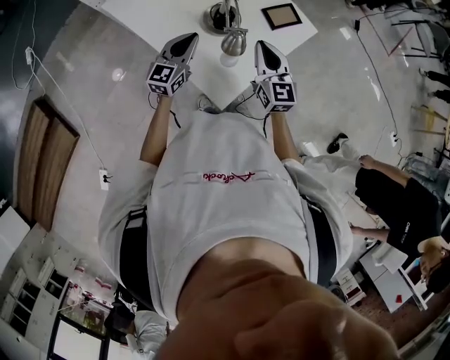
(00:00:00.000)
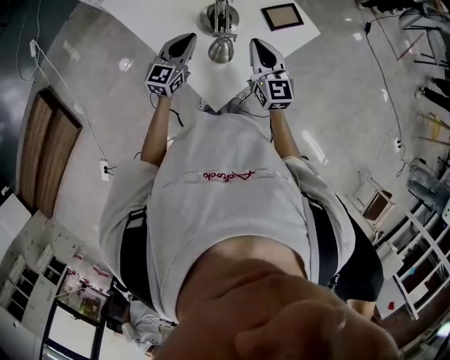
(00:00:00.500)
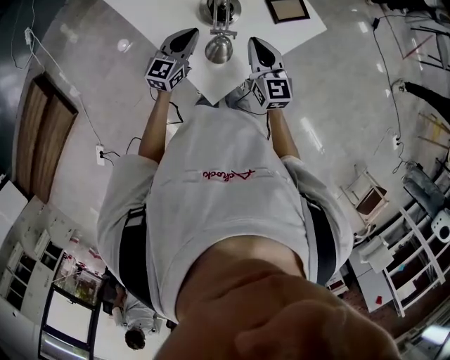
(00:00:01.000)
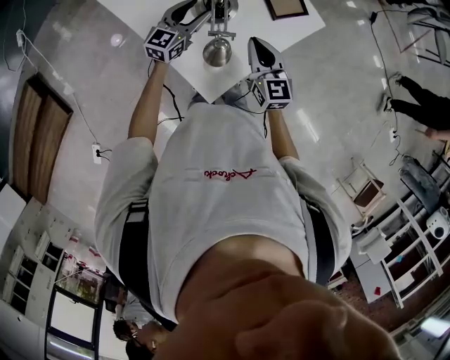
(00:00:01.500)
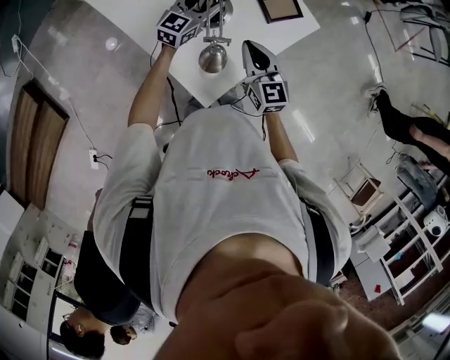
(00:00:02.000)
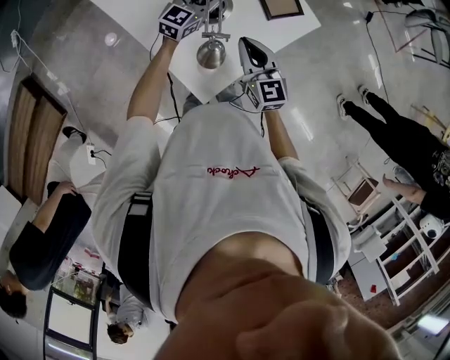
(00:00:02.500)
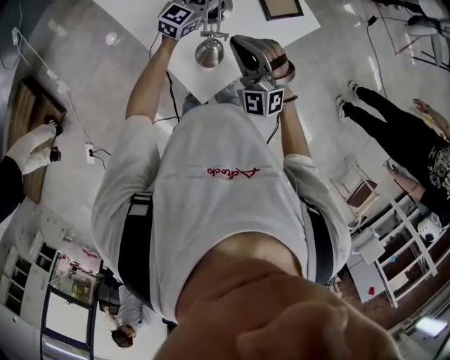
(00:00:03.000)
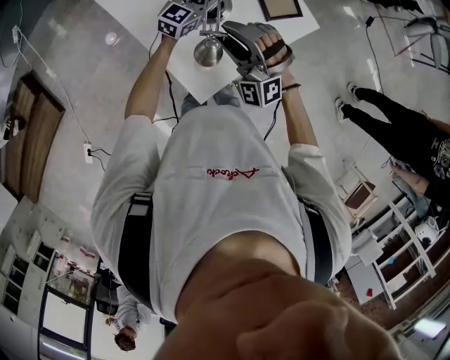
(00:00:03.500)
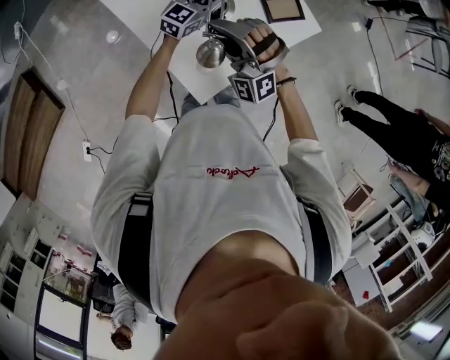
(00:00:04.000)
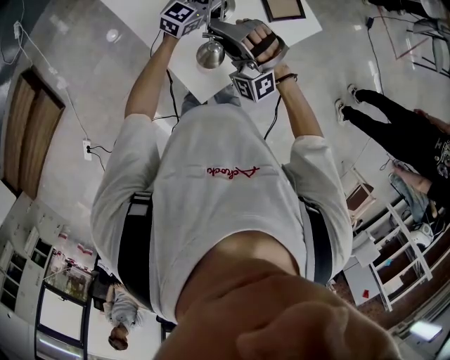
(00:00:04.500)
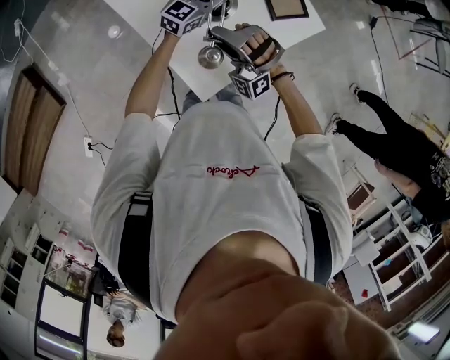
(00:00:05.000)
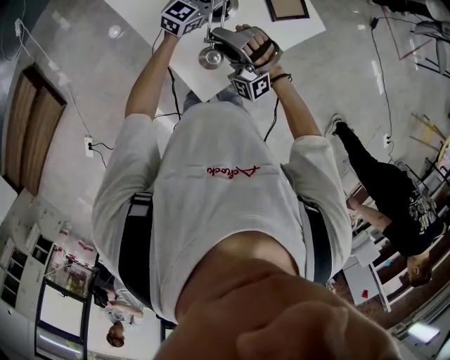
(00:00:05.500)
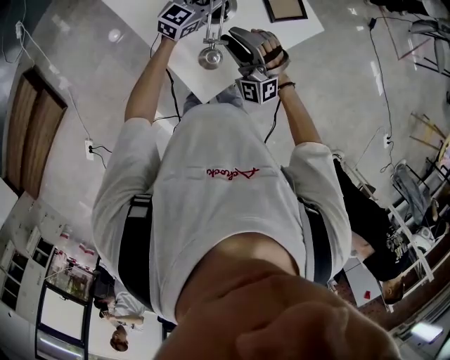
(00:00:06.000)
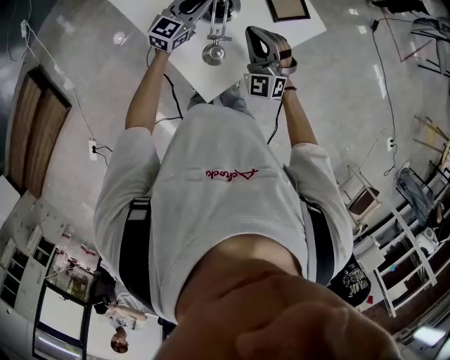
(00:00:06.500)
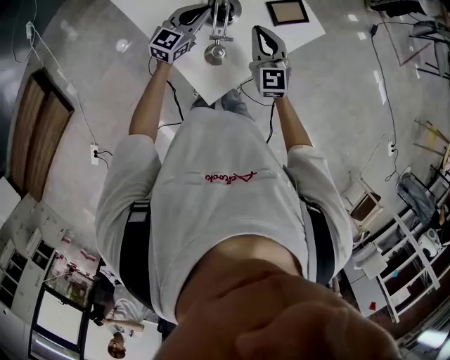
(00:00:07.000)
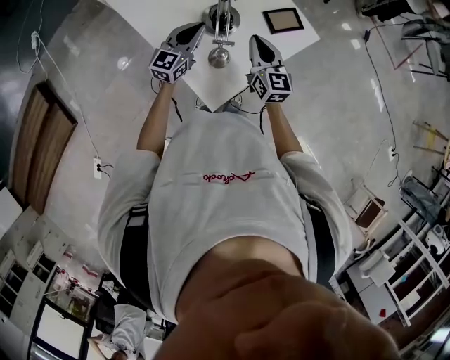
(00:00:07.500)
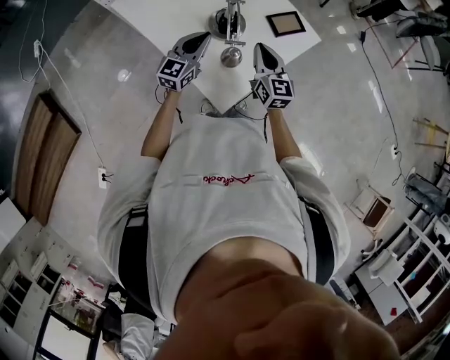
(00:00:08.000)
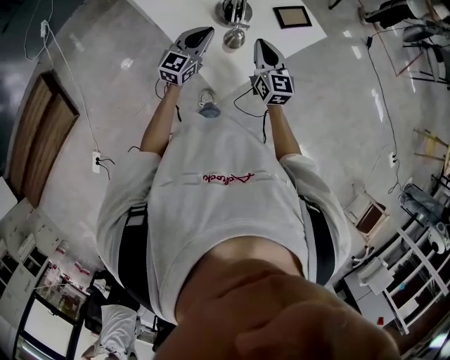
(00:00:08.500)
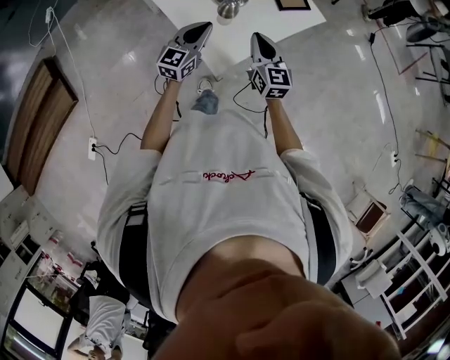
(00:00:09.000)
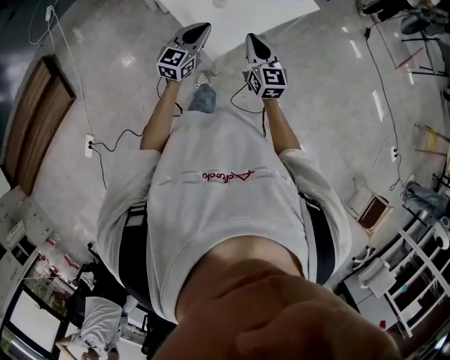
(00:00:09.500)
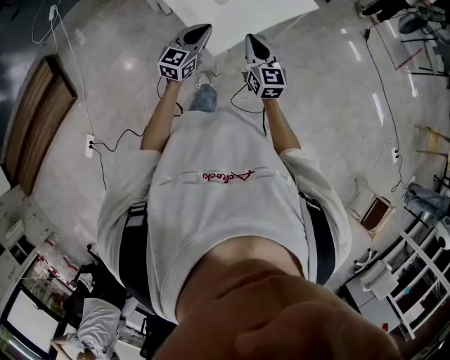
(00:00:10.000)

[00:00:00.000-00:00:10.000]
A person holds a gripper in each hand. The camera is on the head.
00:00:00.000 to 00:00:02.000: The left gripper travels forward and to the right by roughly 15 cm, and opens up. Meanwhile the right gripper is displaced downward by some 5 cm.
00:00:02.000 to 00:00:04.000: The right gripper shifts about 15 cm to the left and upward, twists some 80 degrees counterclockwise, seen from behind, and opens its fingers.
00:00:04.000 to 00:00:06.000: The right gripper travels downward by roughly 5 cm.
00:00:06.000 to 00:00:08.000: The right gripper heads to the right, covering roughly 5 cm, rotates around the line of its fingers by some 70 degrees, clockwise from behind, and closes. Meanwhile the left gripper goes approximately 15 cm backward and to the left, and closes its fingers.
00:00:08.000 to 00:00:10.000: The two grippers go roughly 20 cm backward.

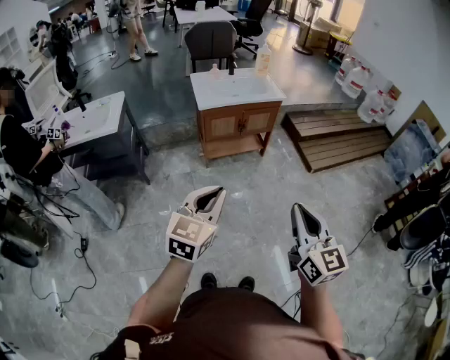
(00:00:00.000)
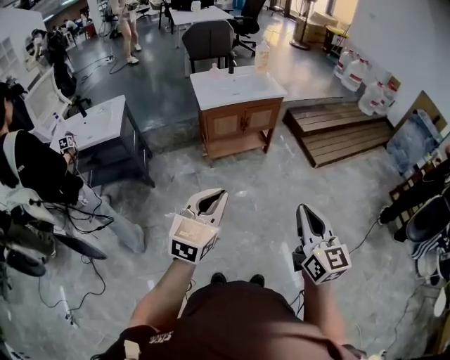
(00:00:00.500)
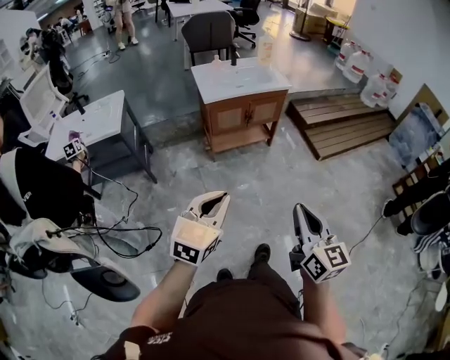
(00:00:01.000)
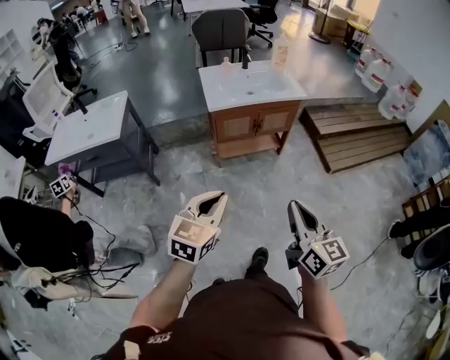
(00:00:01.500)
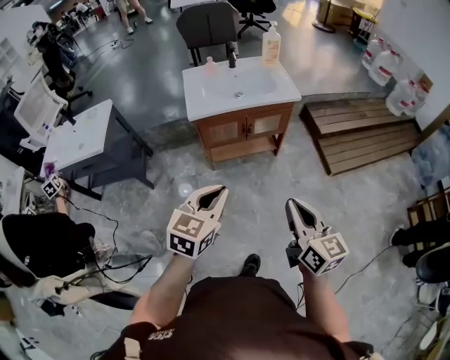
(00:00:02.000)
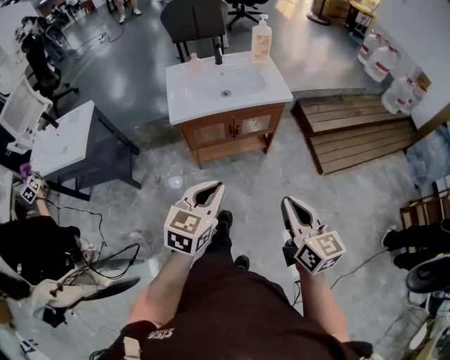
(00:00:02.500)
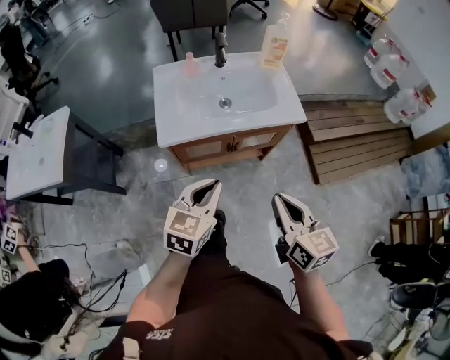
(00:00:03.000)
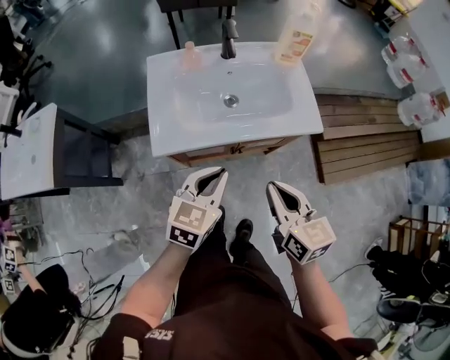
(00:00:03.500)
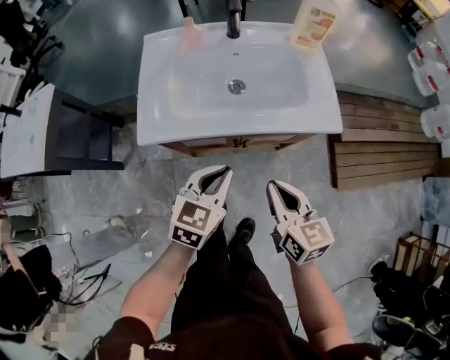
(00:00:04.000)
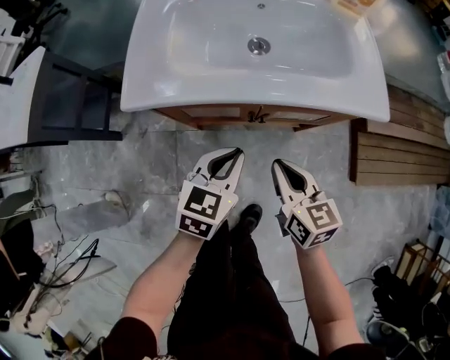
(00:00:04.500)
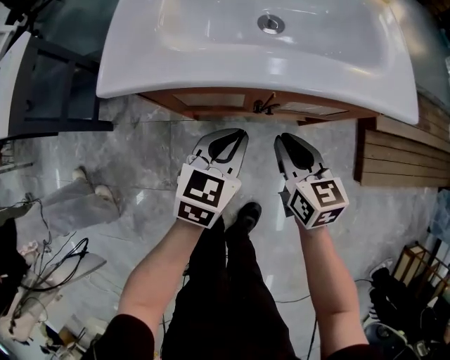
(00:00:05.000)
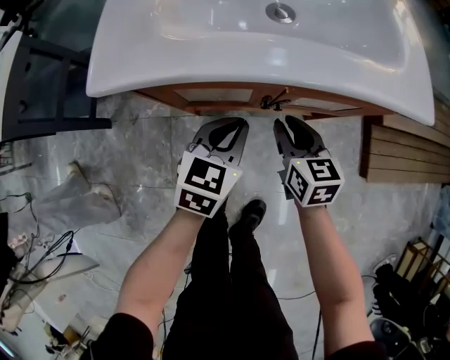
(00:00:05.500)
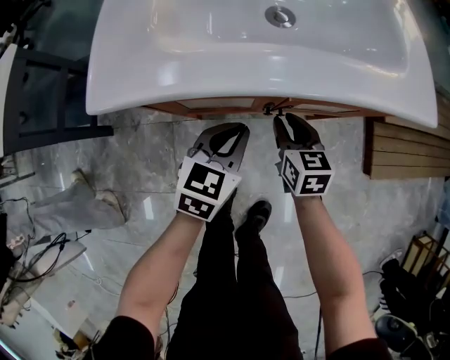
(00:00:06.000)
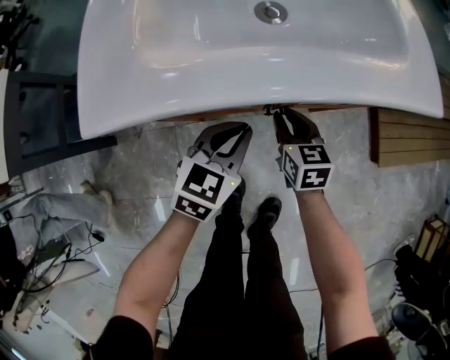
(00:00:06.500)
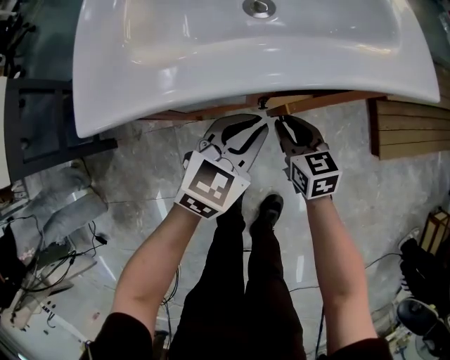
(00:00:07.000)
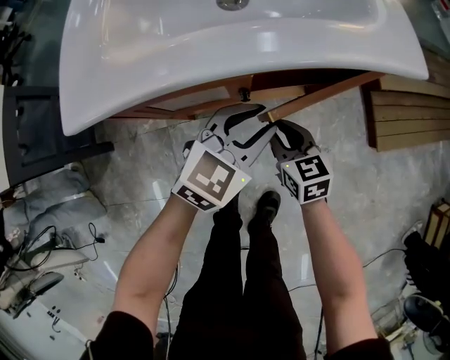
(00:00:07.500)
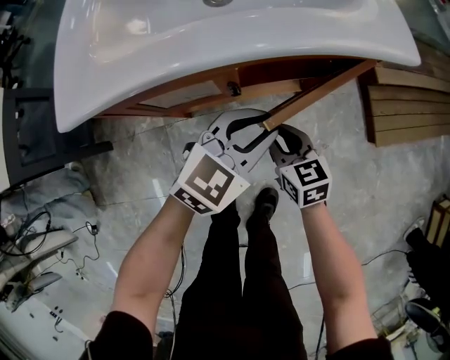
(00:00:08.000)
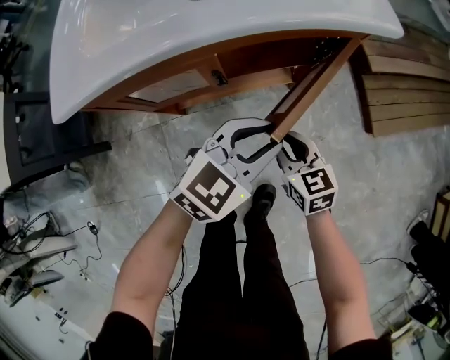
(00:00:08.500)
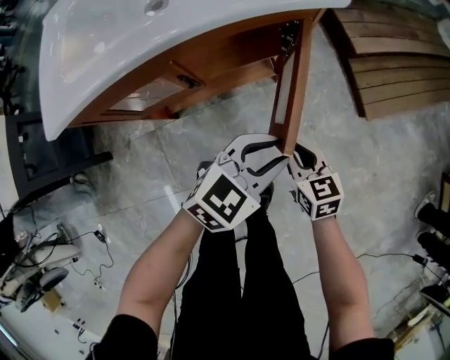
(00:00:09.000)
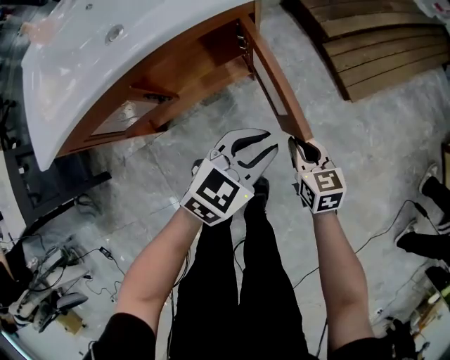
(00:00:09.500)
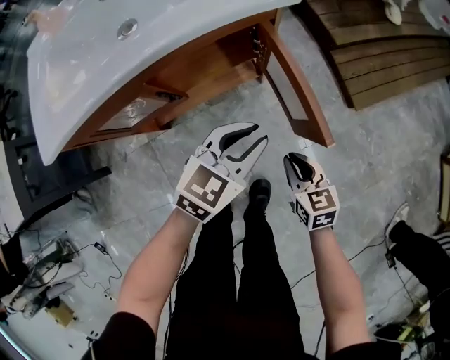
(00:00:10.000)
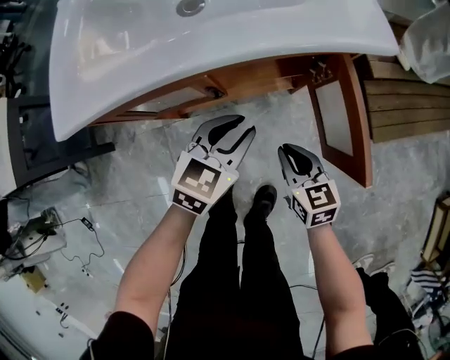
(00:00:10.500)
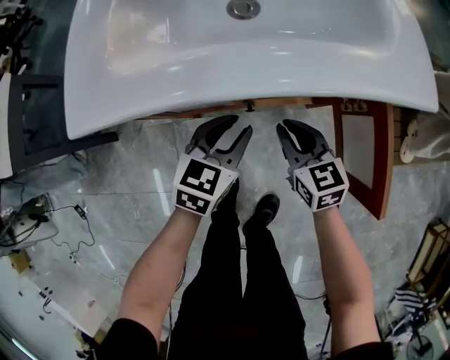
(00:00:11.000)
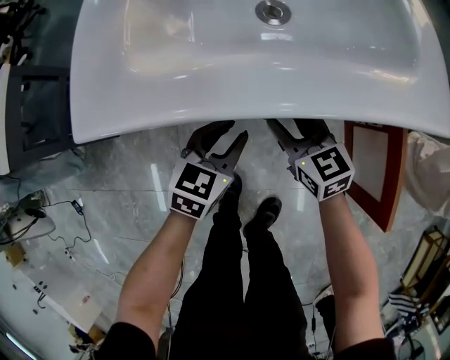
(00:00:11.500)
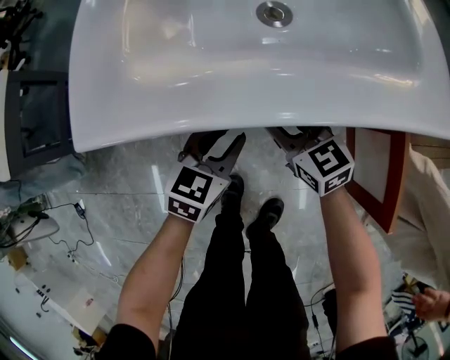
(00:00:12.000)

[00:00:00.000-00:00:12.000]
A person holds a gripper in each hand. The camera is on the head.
00:00:00.000 to 00:00:02.000: The two grippers go some 25 cm forward.
00:00:02.000 to 00:00:04.000: The grippers both shift forward and downward by some 50 cm.
00:00:04.000 to 00:00:06.000: The grippers both shift downward by some 25 cm. The right gripper opens its fingers.
00:00:06.000 to 00:00:08.000: The right gripper shifts roughly 10 cm backward and to the right. The left gripper shifts roughly 15 cm to the right, and changes its angle by some 30 degrees.
00:00:08.000 to 00:00:10.000: The right gripper is displaced to the right by about 20 cm, while the left gripper shifts approximately 15 cm to the right.
00:00:10.000 to 00:00:12.000: The left gripper changes place by about 30 cm, and swivels some 30 degrees. Meanwhile the right gripper shifts by some 40 cm, turns by some 40 degrees, and opens up.

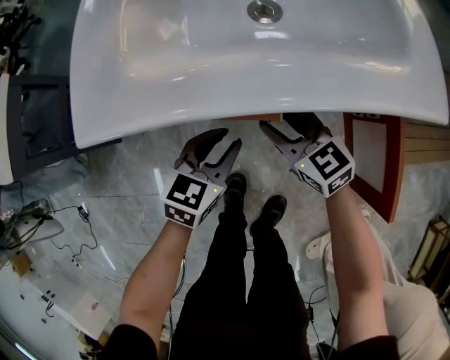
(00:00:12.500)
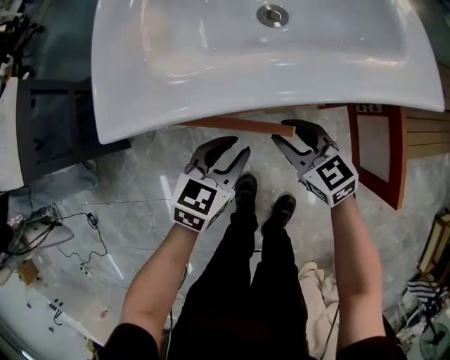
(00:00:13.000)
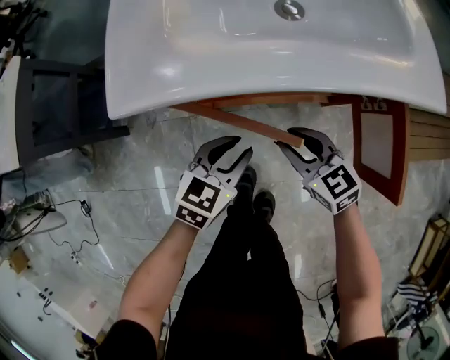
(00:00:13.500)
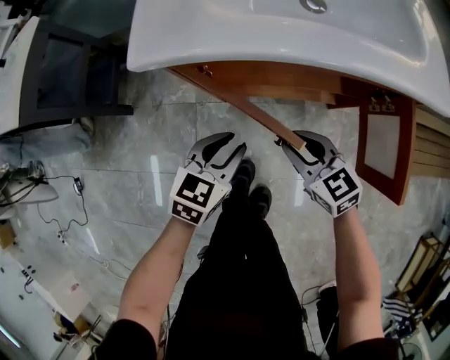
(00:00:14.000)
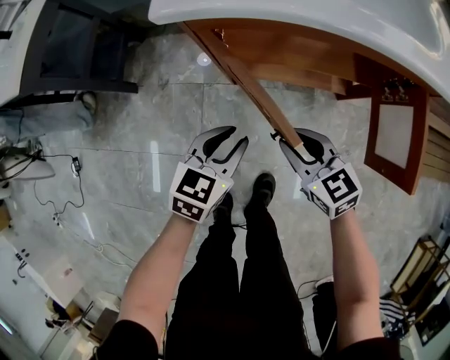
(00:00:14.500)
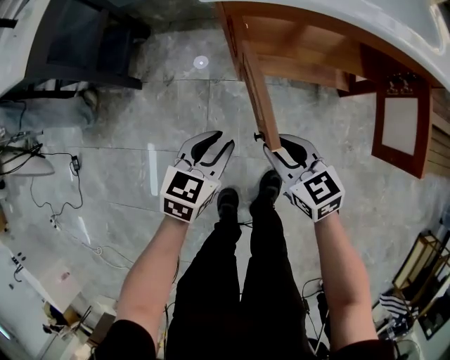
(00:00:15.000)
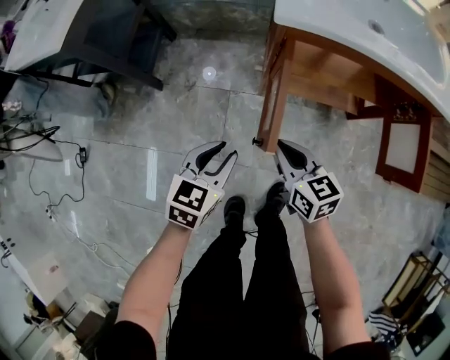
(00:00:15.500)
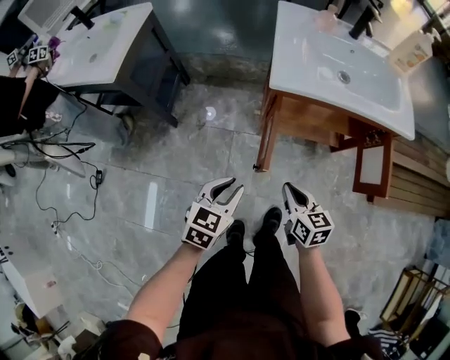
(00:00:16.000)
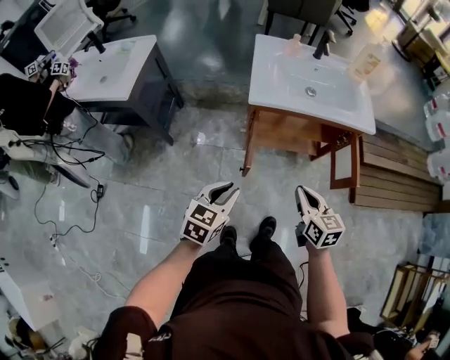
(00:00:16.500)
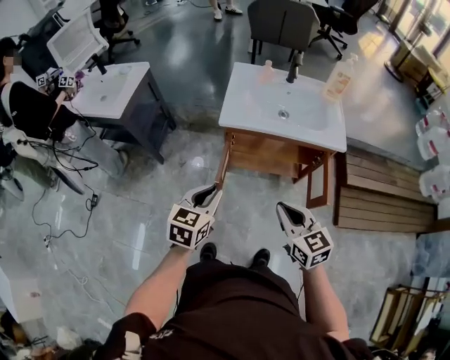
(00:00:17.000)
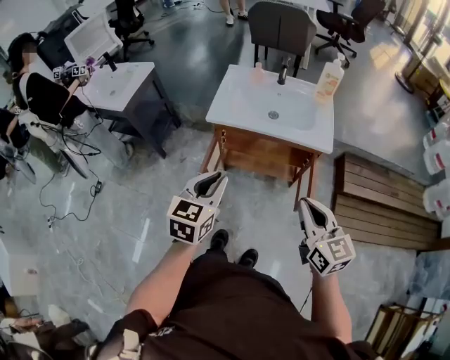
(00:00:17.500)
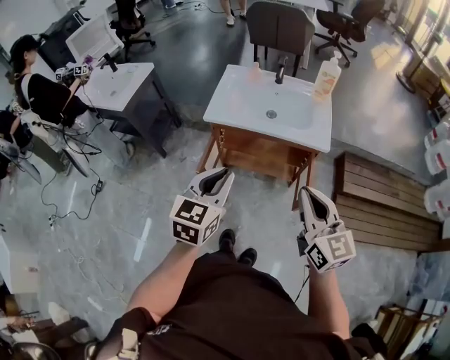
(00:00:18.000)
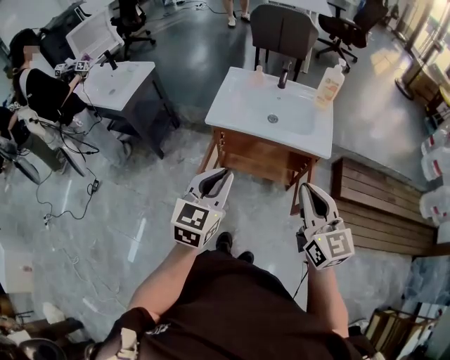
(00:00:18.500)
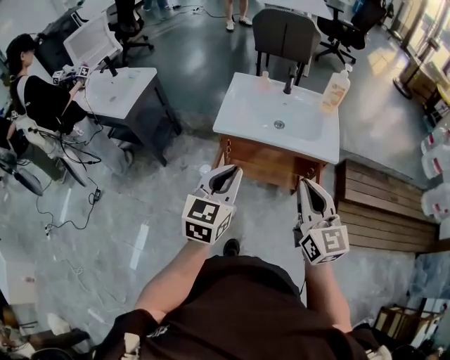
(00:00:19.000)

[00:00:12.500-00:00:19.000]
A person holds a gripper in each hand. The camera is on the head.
00:00:12.500 to 00:00:14.500: The grippers both shift backward and to the left by approximately 20 cm.
00:00:14.500 to 00:00:17.000: The two grippers go some 40 cm upward and backward. The right gripper closes up.
00:00:17.000 to 00:00:19.000: The two grippers go about 15 cm upward and to the right. The right gripper swivels approximately 20 degrees.
